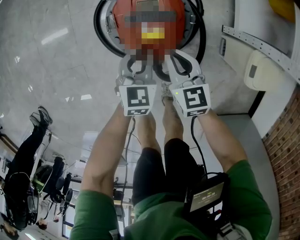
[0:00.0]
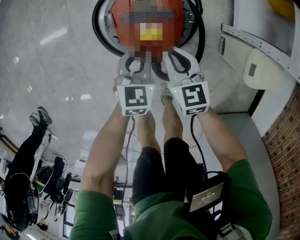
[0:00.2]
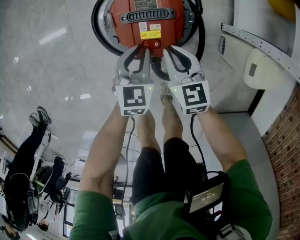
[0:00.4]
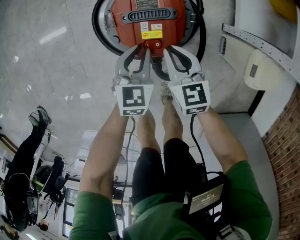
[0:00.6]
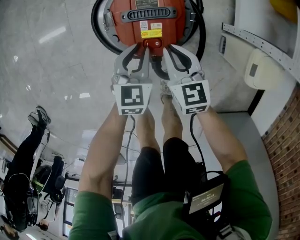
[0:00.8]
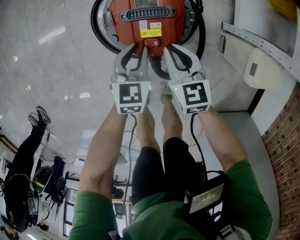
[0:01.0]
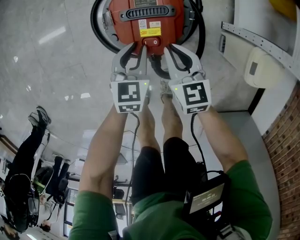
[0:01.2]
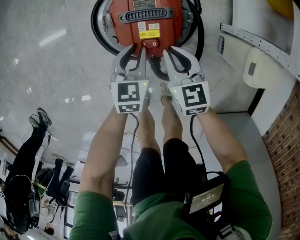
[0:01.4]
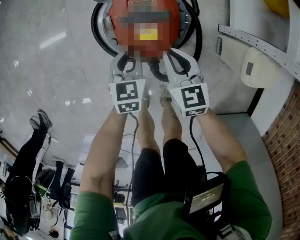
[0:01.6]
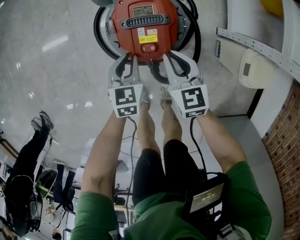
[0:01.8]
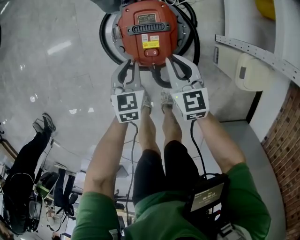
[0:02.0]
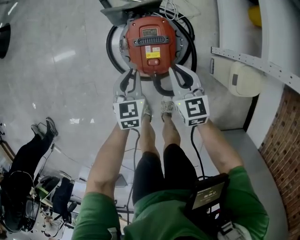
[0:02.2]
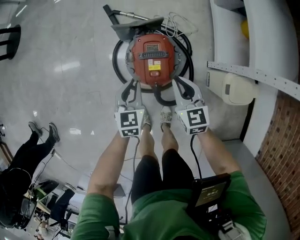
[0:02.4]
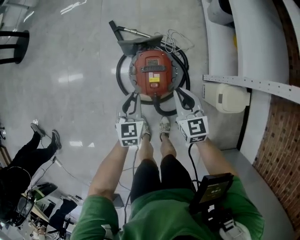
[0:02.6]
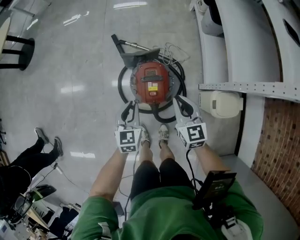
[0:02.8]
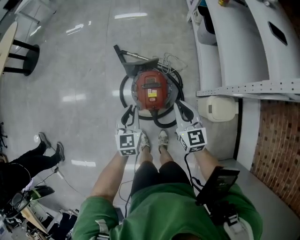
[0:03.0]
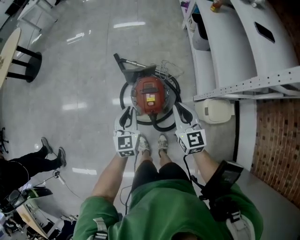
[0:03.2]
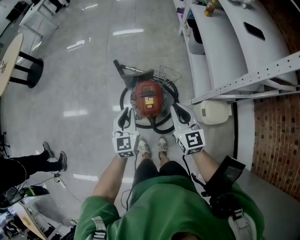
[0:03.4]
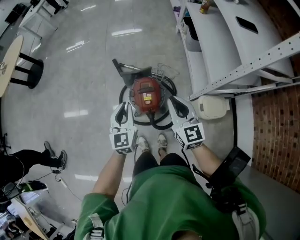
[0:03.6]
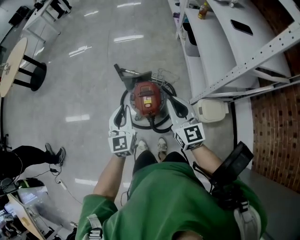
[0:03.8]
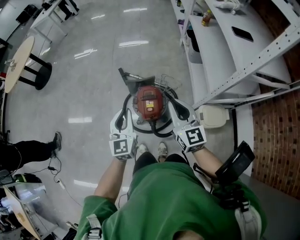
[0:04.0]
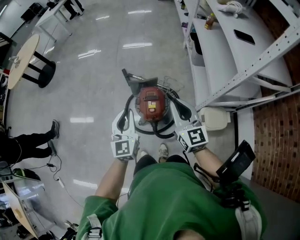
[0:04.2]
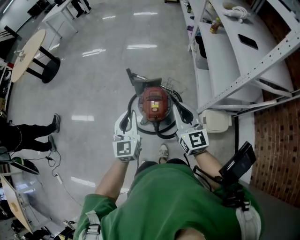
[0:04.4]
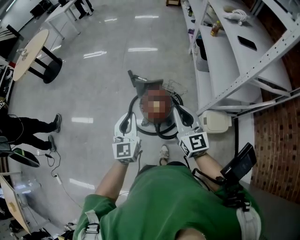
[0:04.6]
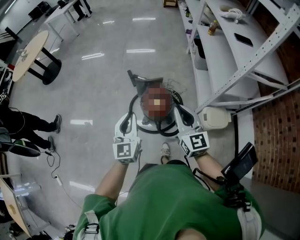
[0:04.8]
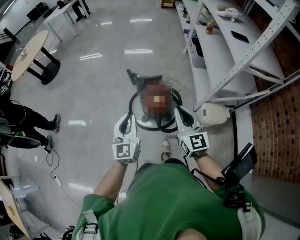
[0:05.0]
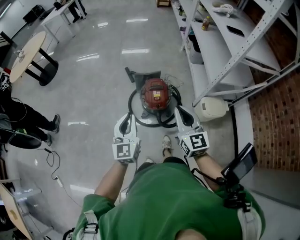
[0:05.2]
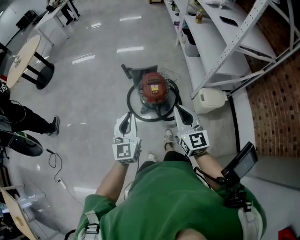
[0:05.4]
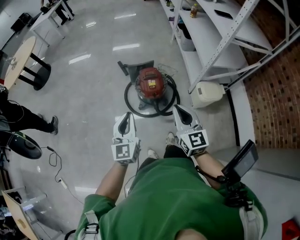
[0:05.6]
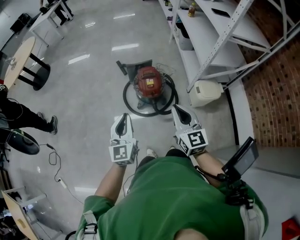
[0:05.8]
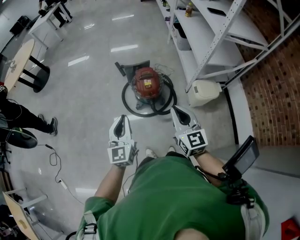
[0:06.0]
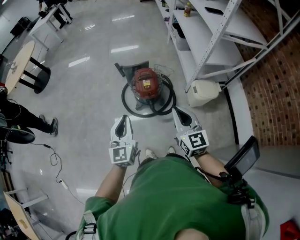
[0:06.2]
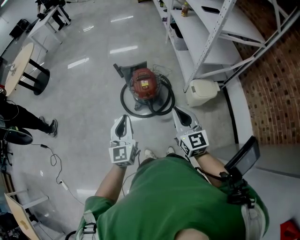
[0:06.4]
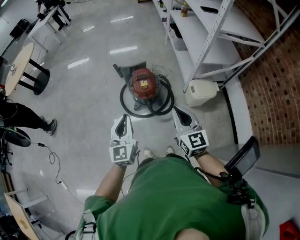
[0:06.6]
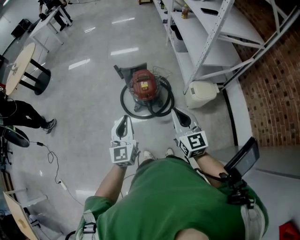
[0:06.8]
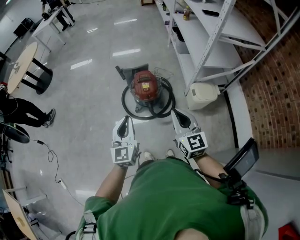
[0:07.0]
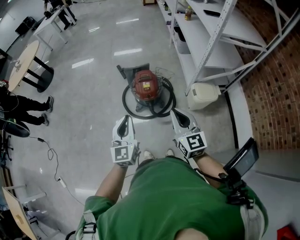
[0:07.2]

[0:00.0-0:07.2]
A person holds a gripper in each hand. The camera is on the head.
0:00.0 to 0:01.4: The grippers stay close to where they were, moving slightly.
0:01.4 to 0:02.8: The grippers both shift upward by approximately 30 cm.
0:02.8 to 0:04.4: Both grippers move upward, approximately 25 cm. The left gripper rotates approximately 30 degrees. The right gripper changes its angle by some 20 degrees.
0:04.4 to 0:05.8: The left gripper shifts about 25 cm backward and to the left, while the right gripper is displaced backward by some 25 cm.
0:05.8 to 0:07.2: Both grippers move to the right, approximately 5 cm.

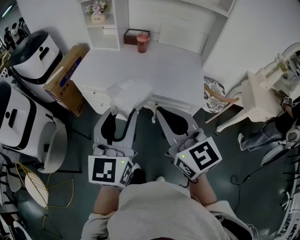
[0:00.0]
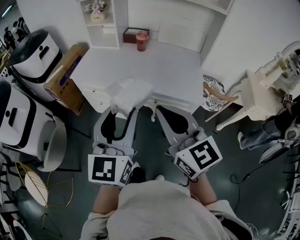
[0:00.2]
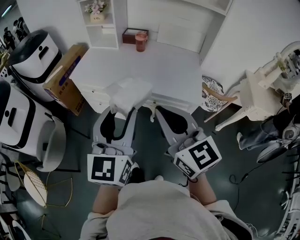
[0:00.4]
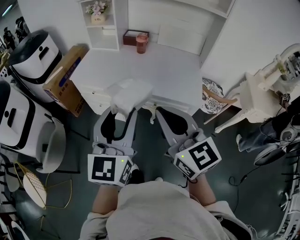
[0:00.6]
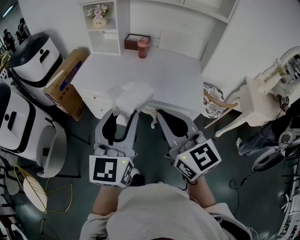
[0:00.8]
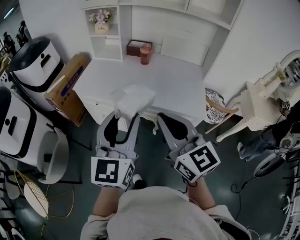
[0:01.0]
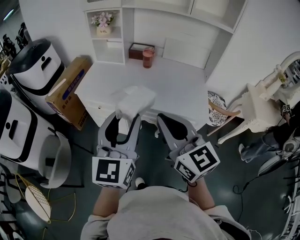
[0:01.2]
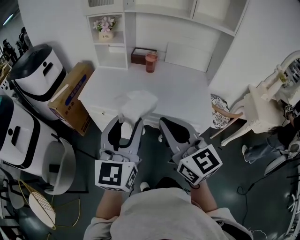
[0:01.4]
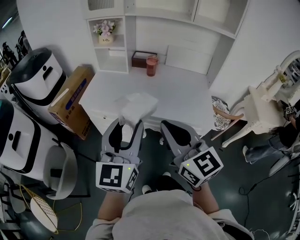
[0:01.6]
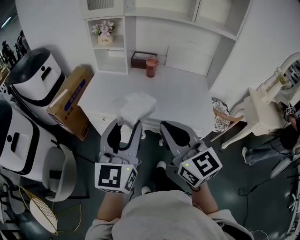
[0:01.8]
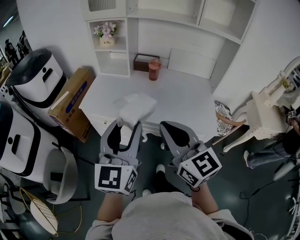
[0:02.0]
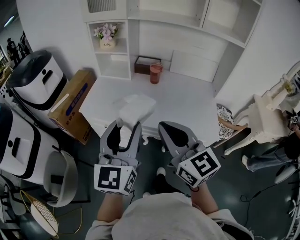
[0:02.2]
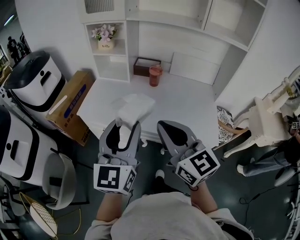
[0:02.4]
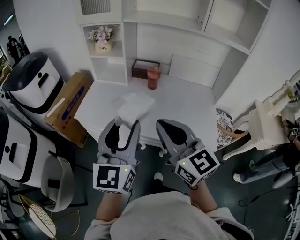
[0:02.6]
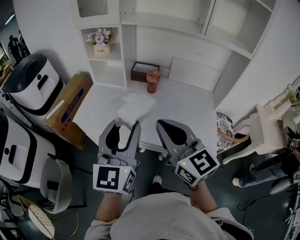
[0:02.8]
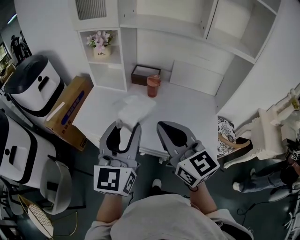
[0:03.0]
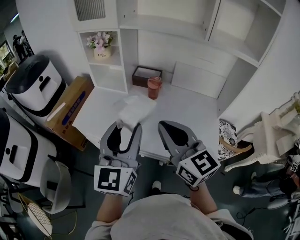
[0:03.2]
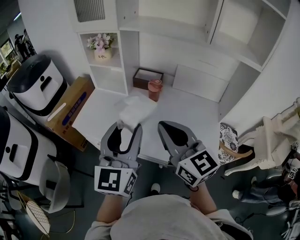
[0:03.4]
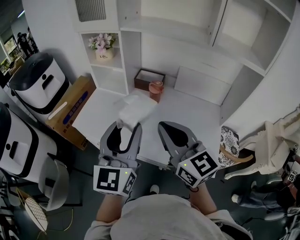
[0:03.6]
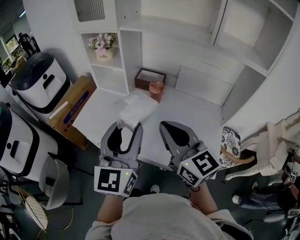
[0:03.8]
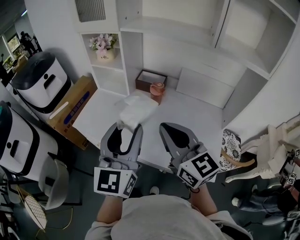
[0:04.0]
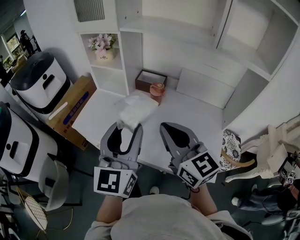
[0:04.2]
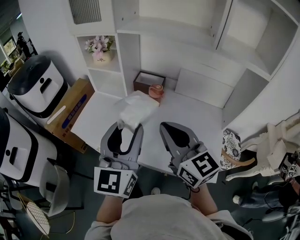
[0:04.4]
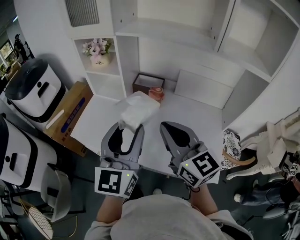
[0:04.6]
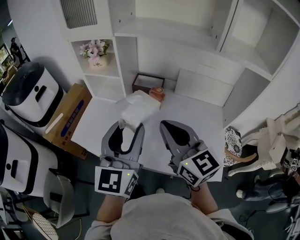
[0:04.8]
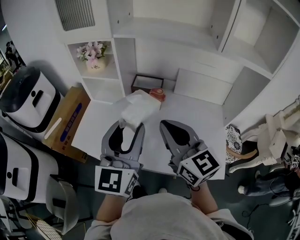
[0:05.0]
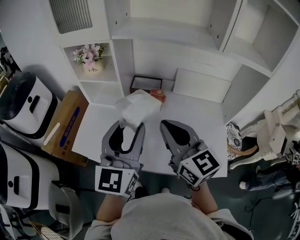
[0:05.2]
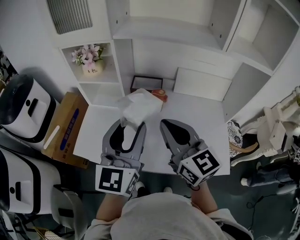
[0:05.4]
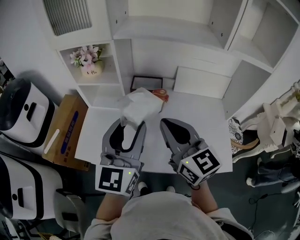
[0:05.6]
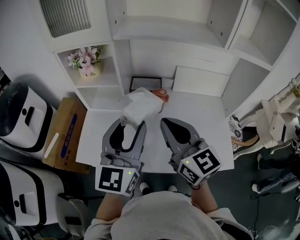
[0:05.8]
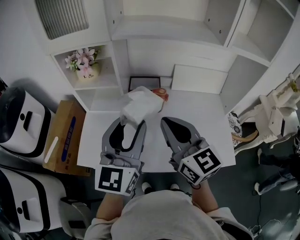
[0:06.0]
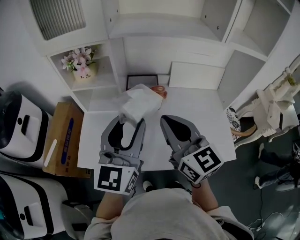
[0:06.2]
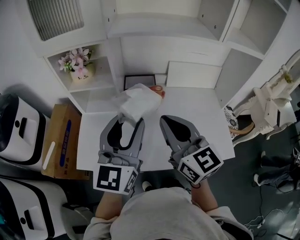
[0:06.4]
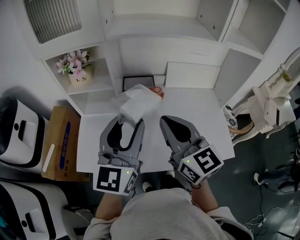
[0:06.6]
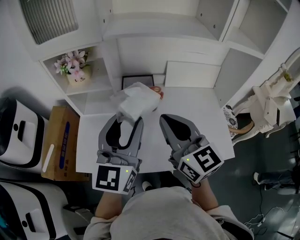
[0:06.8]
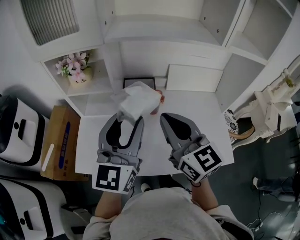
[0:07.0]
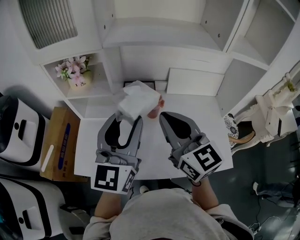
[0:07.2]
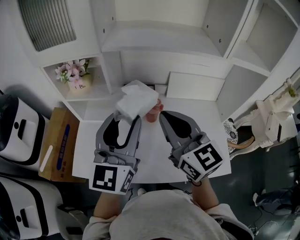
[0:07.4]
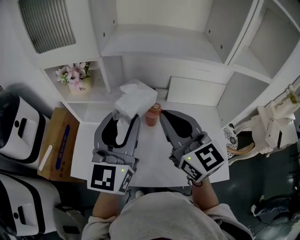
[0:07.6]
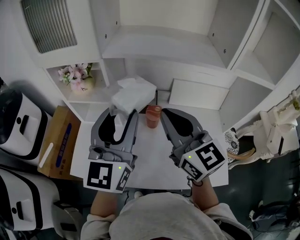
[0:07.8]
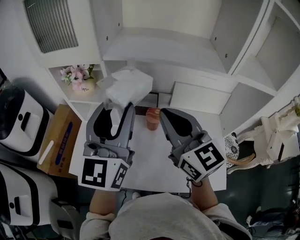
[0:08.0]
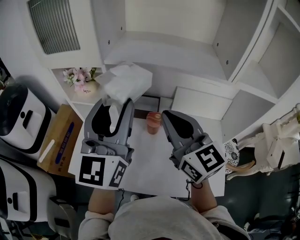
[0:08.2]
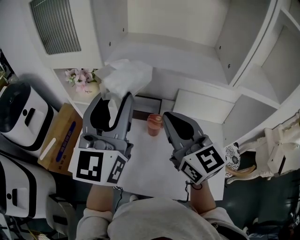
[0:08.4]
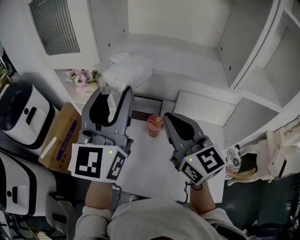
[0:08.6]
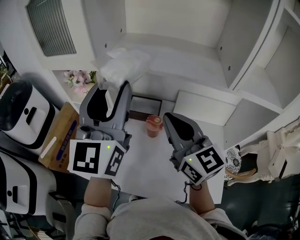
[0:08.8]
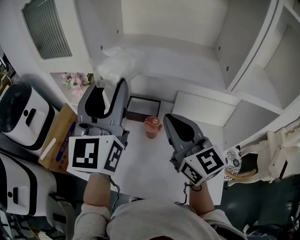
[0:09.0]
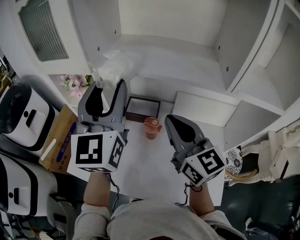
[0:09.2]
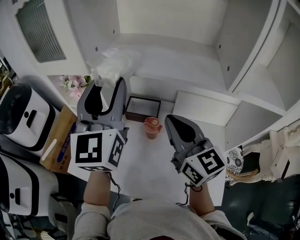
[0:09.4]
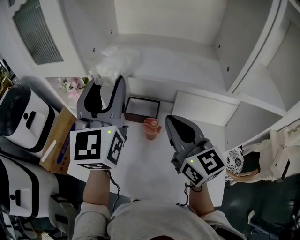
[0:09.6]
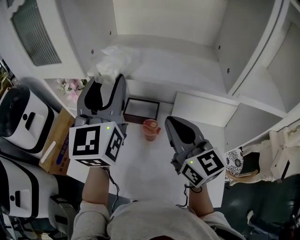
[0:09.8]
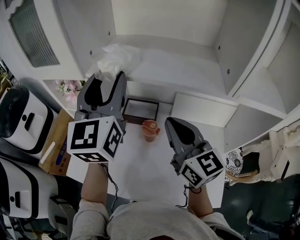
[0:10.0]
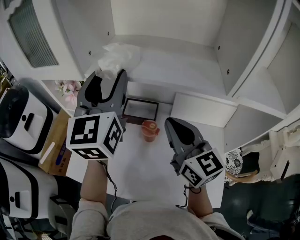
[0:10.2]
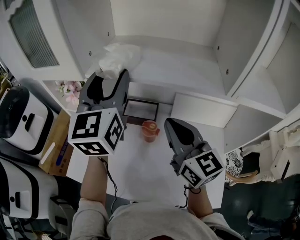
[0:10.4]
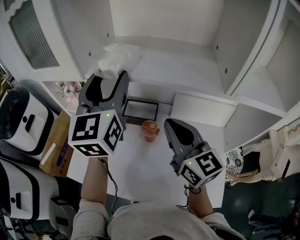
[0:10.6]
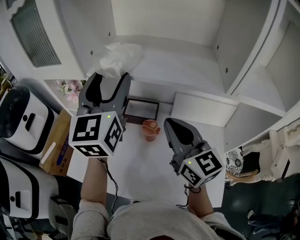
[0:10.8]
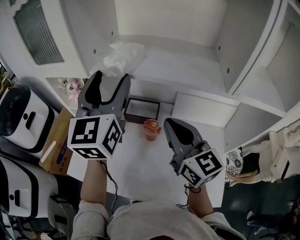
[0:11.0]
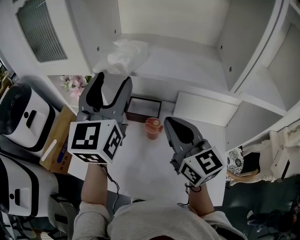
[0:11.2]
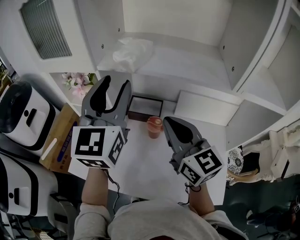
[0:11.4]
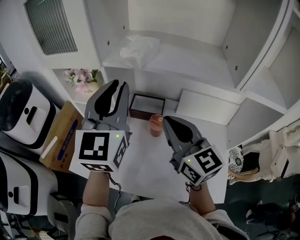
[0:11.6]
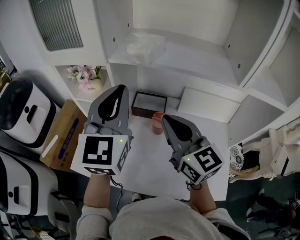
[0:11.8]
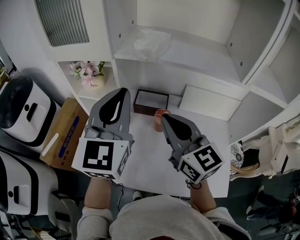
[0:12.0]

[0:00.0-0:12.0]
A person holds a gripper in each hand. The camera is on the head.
0:00.0 to 0:01.6: The left gripper moves forward and to the left, about 10 cm, while the right gripper moves to the left and forward, about 10 cm.
0:01.6 to 0:03.0: The grippers both shift forward by about 20 cm.
0:03.0 to 0:04.4: The grippers both shift forward and to the right by about 10 cm.
0:04.4 to 0:06.0: Both grippers travel together forward and to the left, roughly 15 cm.
0:06.0 to 0:07.6: The grippers both shift forward by approximately 10 cm.
0:07.6 to 0:09.0: The left gripper moves upward and forward, some 15 cm; the right gripper goes roughly 10 cm to the right and forward.
0:09.0 to 0:10.4: The left gripper shifts approximately 10 cm forward.
0:10.4 to 0:12.0: The right gripper shifts approximately 10 cm to the left, while the left gripper is displaced backward and to the left by approximately 10 cm, and closes.

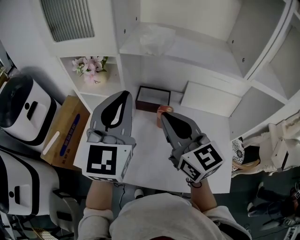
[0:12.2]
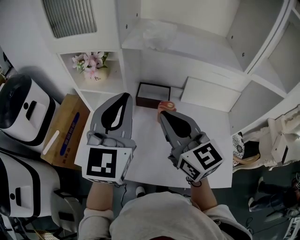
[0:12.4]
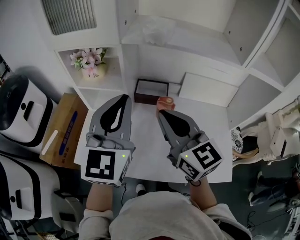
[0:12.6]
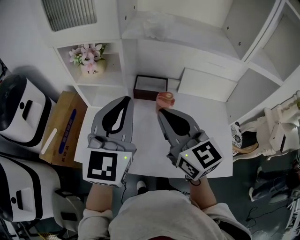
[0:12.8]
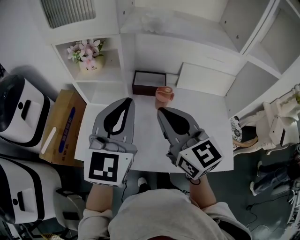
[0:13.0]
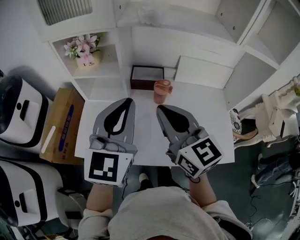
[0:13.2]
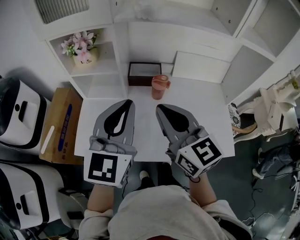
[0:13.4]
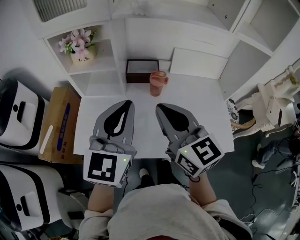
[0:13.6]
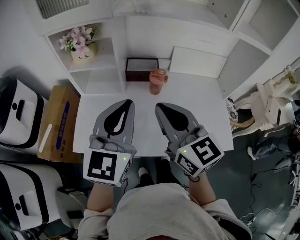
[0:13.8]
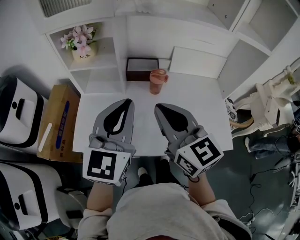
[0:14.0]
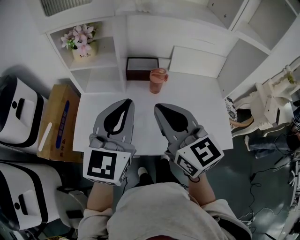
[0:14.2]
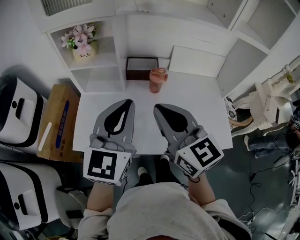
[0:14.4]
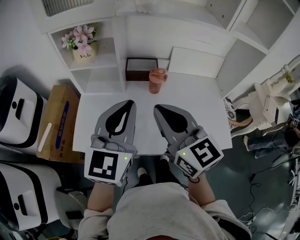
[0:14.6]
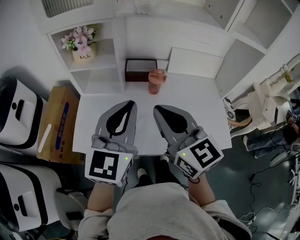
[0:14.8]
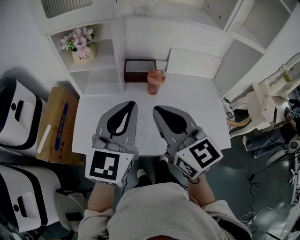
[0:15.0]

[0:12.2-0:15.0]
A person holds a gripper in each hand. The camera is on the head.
0:12.2 to 0:13.6: The left gripper goes some 15 cm backward and downward; the right gripper travels backward by approximately 10 cm.
0:13.6 to 0:15.0: The grippers make only small movements.

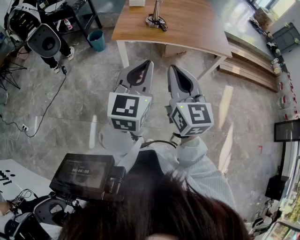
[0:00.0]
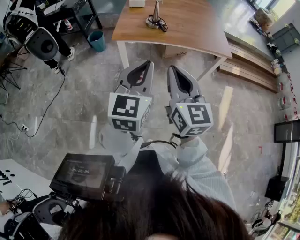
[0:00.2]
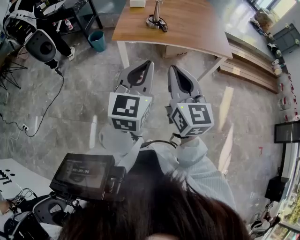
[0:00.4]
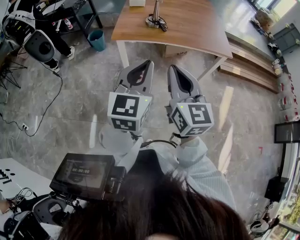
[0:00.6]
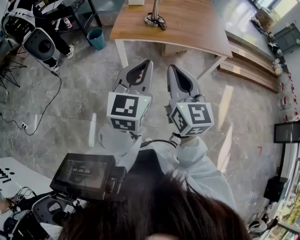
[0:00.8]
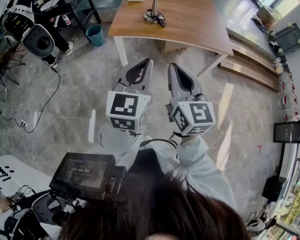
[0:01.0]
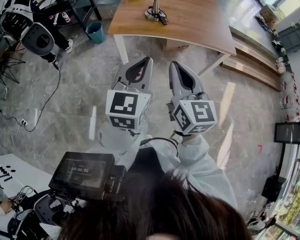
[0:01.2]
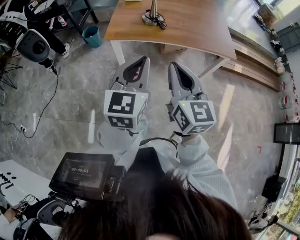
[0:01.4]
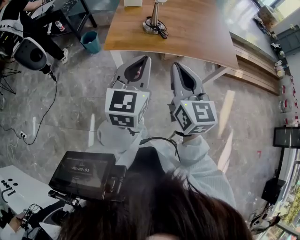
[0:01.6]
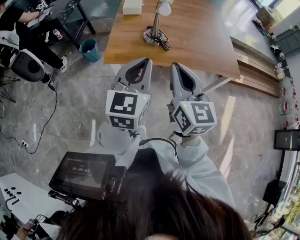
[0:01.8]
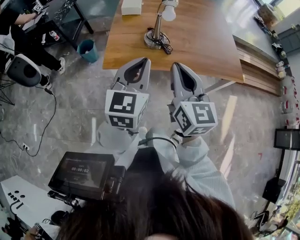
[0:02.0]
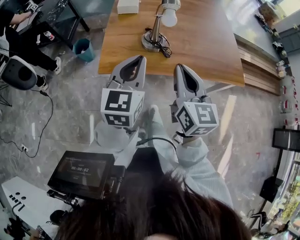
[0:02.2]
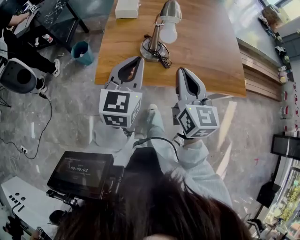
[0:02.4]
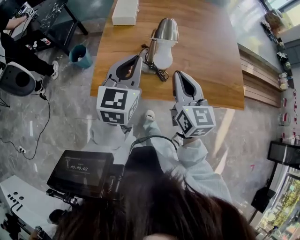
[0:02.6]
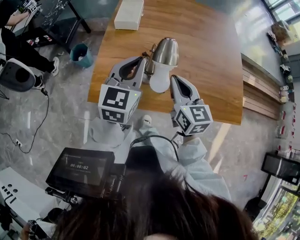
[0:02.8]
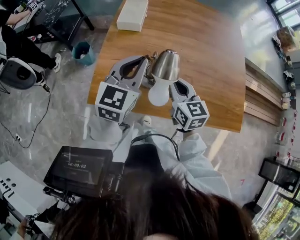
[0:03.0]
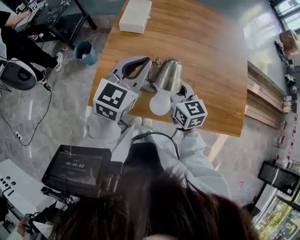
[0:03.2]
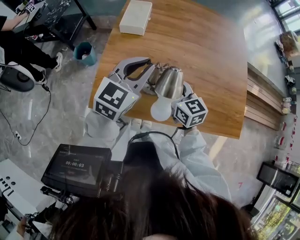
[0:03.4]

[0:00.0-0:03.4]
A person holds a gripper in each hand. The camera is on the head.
0:00.0 to 0:01.6: Both grippers travel together forward, approximately 20 cm.
0:01.6 to 0:03.4: The pair of grippers is taken forward, approximately 50 cm. The right gripper changes its angle by approximately 30 degrees.
